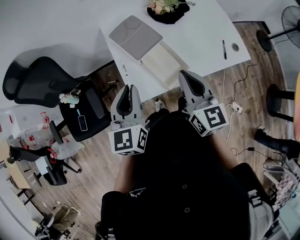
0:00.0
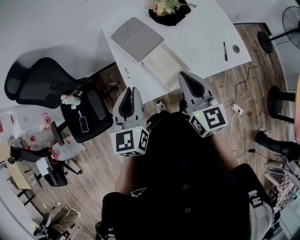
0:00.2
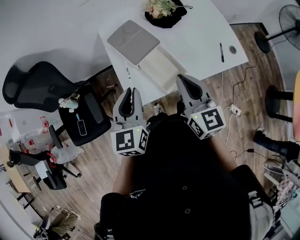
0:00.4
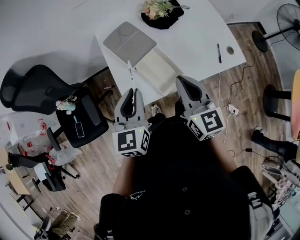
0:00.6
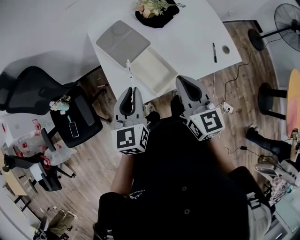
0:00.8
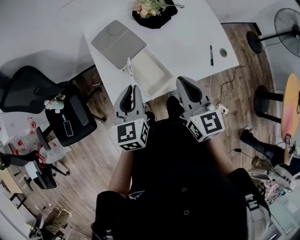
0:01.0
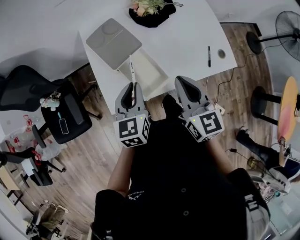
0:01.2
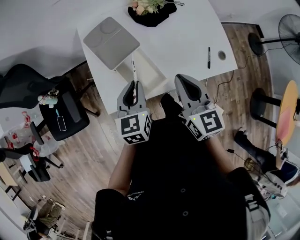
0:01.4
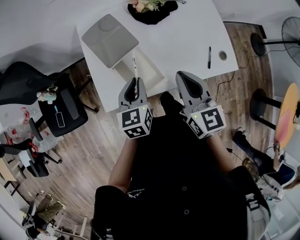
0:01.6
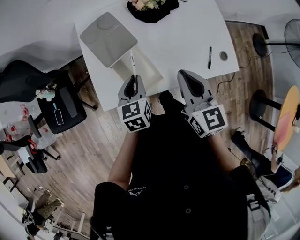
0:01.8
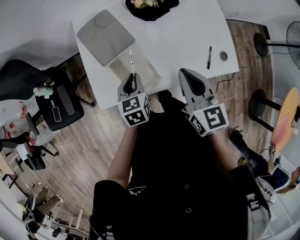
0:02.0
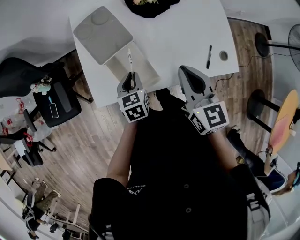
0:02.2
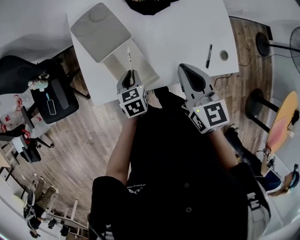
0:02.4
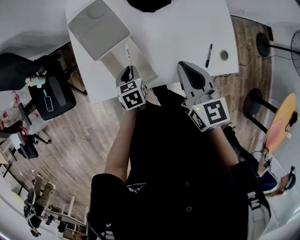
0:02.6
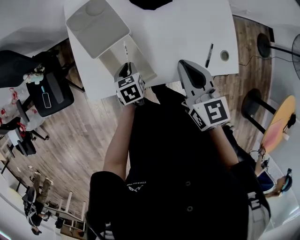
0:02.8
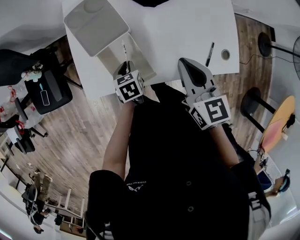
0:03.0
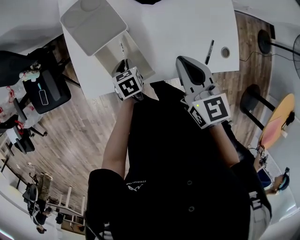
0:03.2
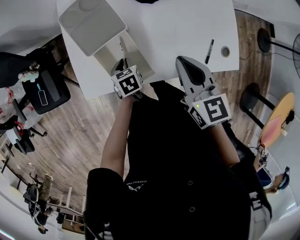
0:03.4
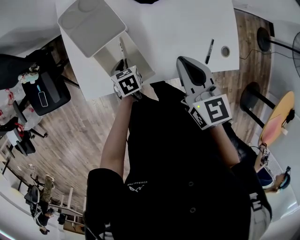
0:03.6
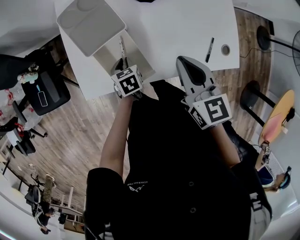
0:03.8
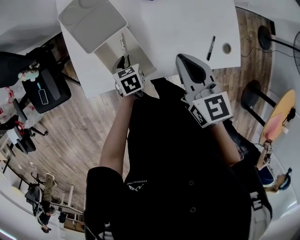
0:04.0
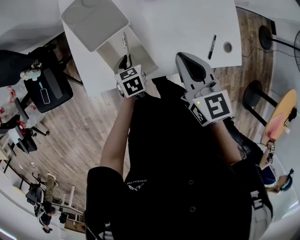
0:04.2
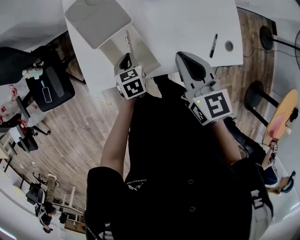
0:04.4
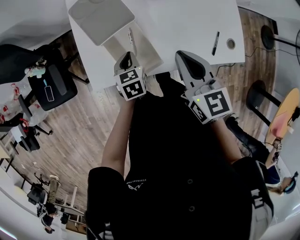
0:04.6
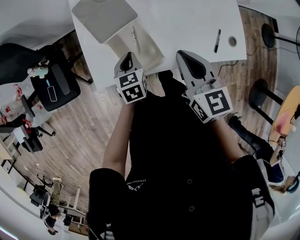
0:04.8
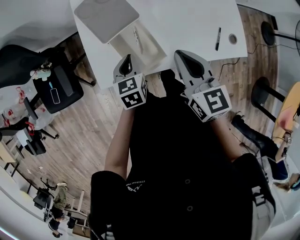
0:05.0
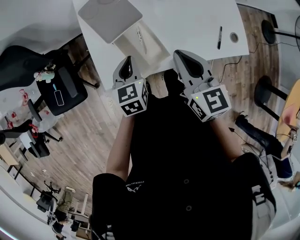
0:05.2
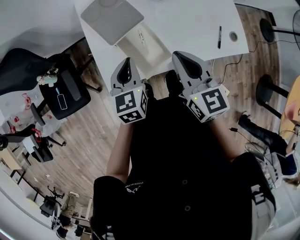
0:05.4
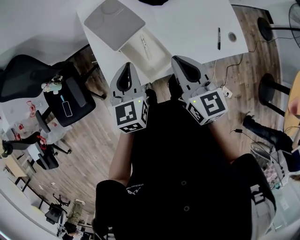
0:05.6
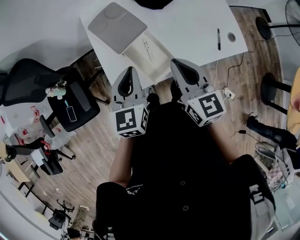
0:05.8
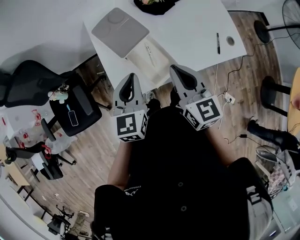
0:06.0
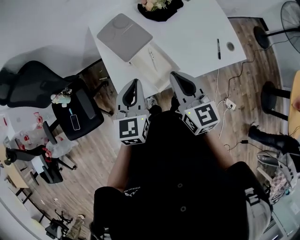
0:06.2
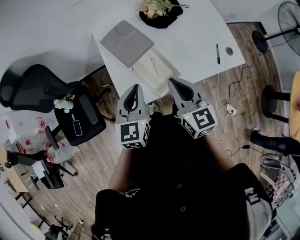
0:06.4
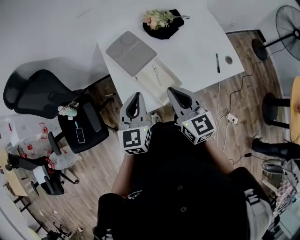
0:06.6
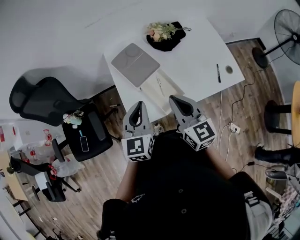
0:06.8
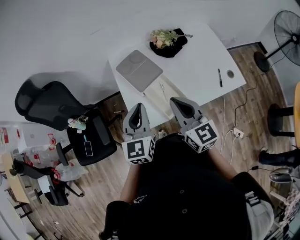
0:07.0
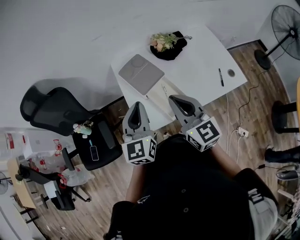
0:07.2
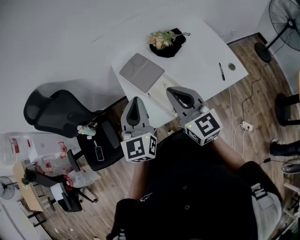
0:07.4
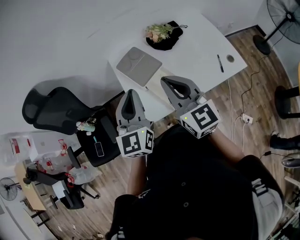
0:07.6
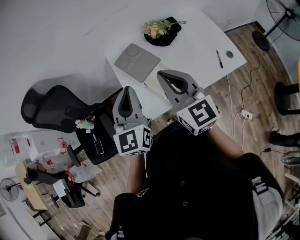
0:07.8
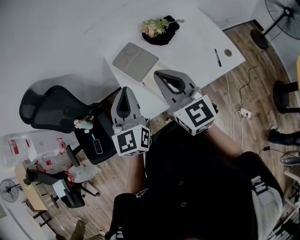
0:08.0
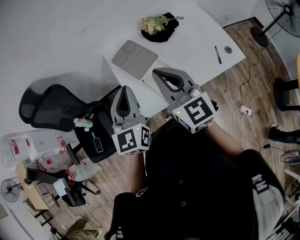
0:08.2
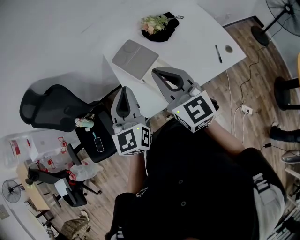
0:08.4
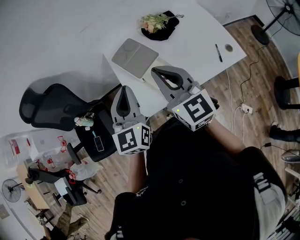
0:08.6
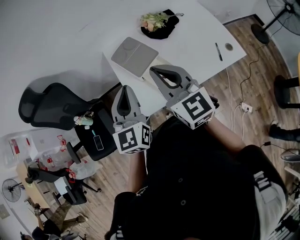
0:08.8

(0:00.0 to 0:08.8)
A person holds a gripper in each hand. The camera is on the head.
0:00.0 - 0:01.4: The left gripper travels to the right, downward and forward by some 20 cm. Meanwhile the right gripper travels to the right and forward by about 15 cm.
0:01.4 - 0:03.0: The right gripper shifts approximately 15 cm to the right, forward and downward. Meanwhile the left gripper travels downward by approximately 20 cm, and tips its fingers downward by roughly 30 degrees.
0:03.0 - 0:04.4: The grippers stay close to where they were, moving slightly.
0:04.4 - 0:05.8: The left gripper travels upward by about 25 cm, and tilts its fingers some 30 degrees upward. Meanwhile the right gripper travels to the left, backward and upward by some 15 cm.
0:05.8 - 0:07.4: Both grippers travel together upward and to the left, about 15 cm. The left gripper turns by about 20 degrees.
0:07.4 - 0:08.8: The grippers move only a little.

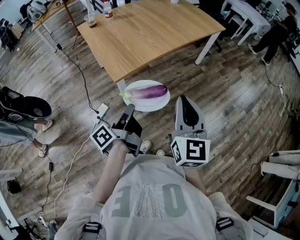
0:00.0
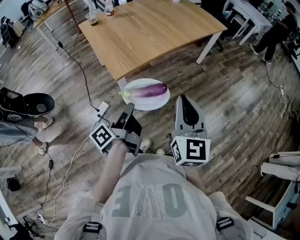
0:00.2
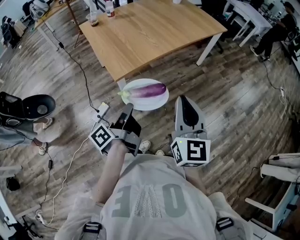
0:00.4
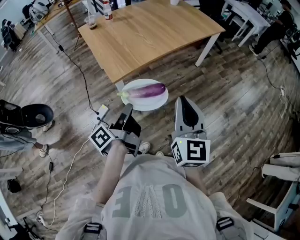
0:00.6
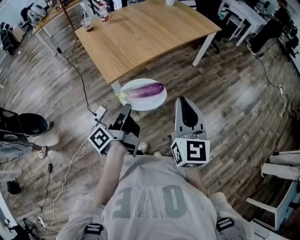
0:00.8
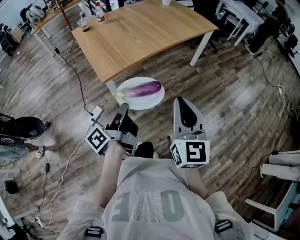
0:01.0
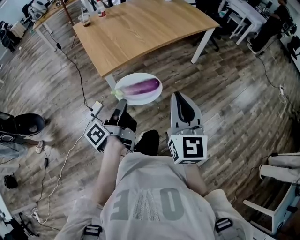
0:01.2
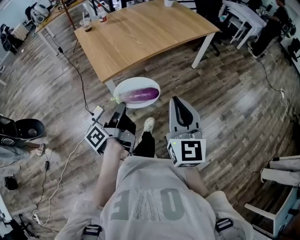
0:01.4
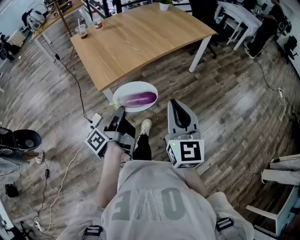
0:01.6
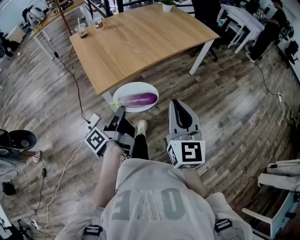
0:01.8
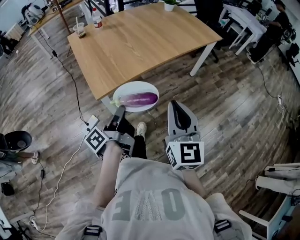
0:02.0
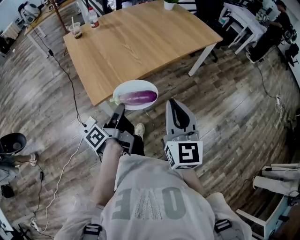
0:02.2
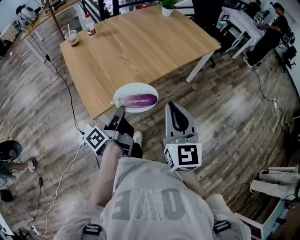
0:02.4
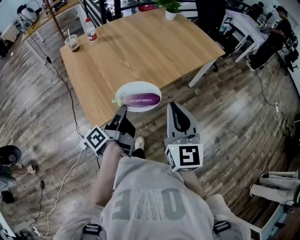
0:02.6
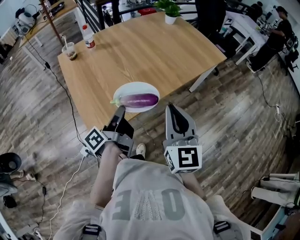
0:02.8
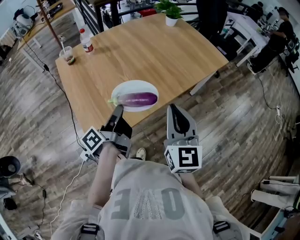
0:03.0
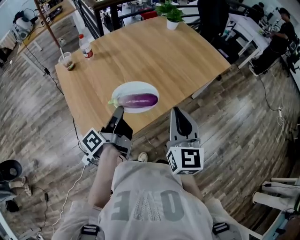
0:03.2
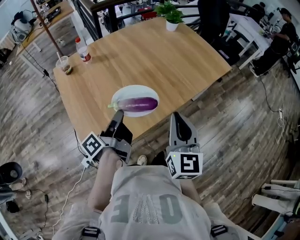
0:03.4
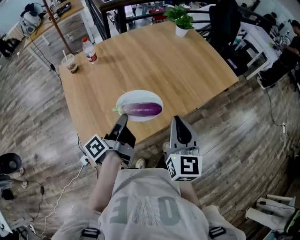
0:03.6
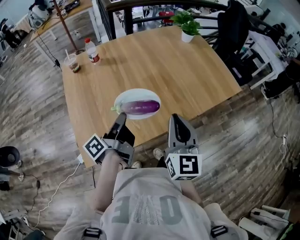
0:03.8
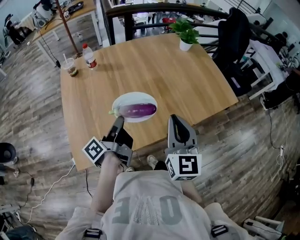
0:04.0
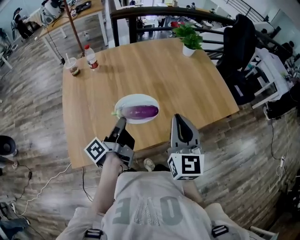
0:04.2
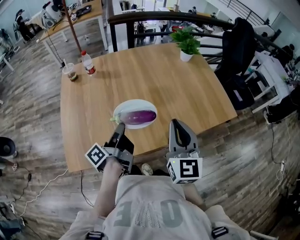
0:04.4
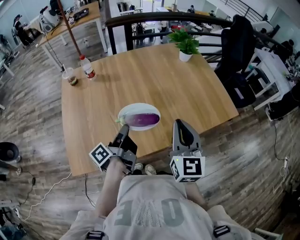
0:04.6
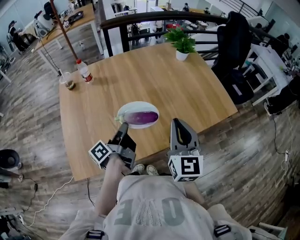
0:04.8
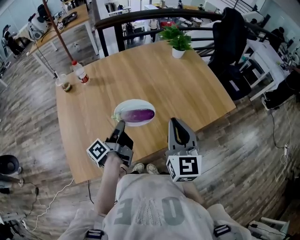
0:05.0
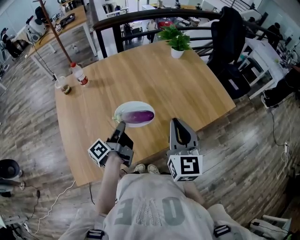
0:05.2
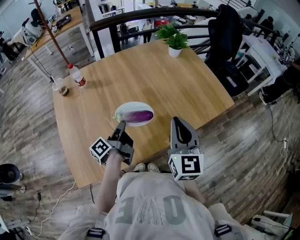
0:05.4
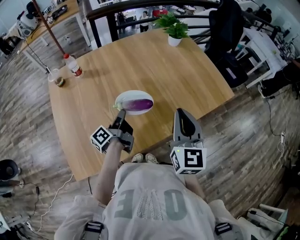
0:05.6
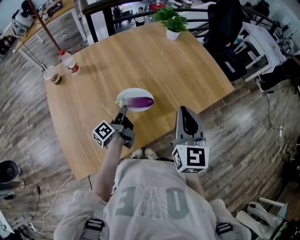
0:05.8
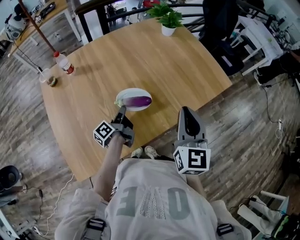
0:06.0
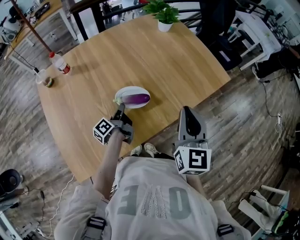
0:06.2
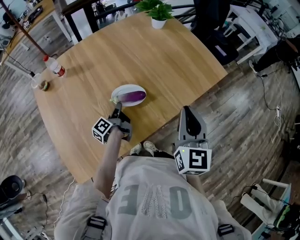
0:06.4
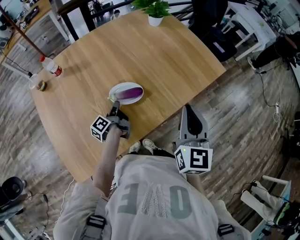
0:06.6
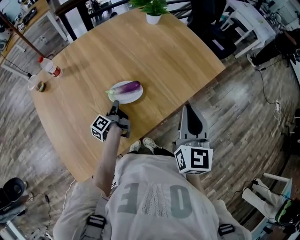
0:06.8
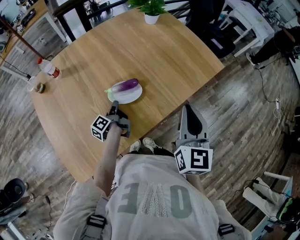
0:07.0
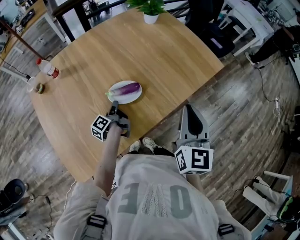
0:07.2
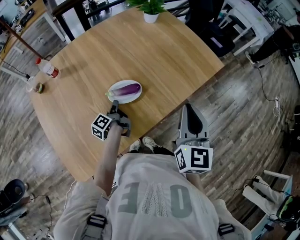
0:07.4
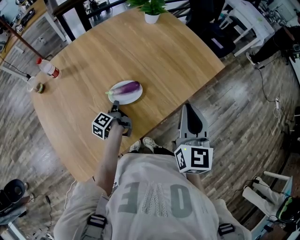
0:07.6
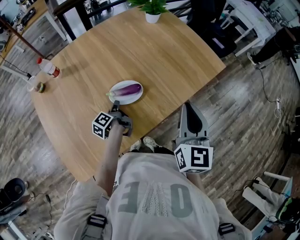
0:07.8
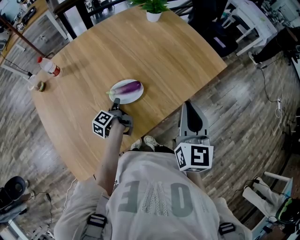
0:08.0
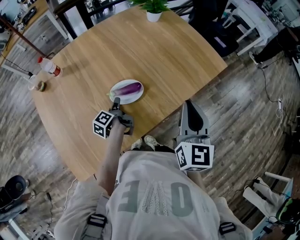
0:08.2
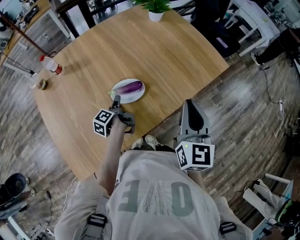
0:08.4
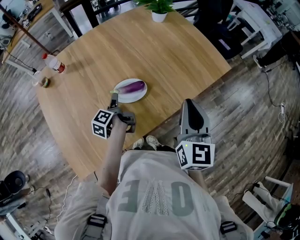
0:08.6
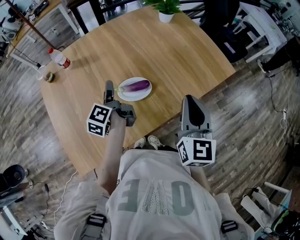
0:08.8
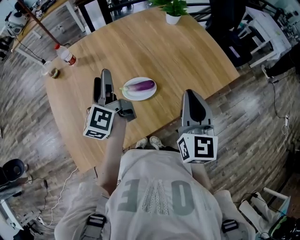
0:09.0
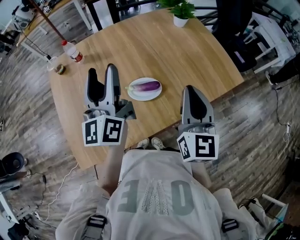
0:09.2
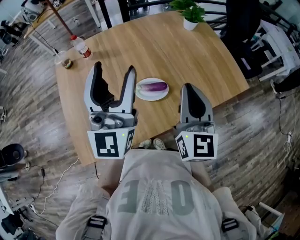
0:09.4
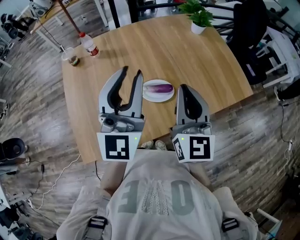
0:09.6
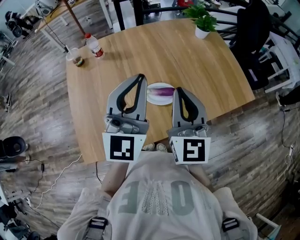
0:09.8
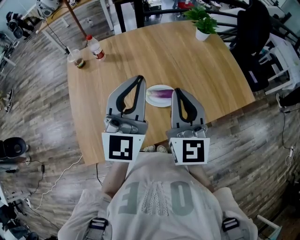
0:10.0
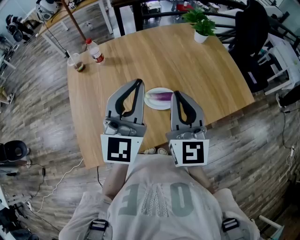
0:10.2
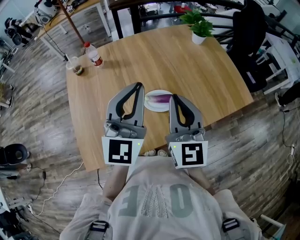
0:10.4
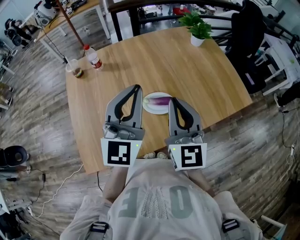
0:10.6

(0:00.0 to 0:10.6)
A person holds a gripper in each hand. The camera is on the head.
0:00.0 - 0:01.6: The right gripper changes place by about 5 cm.
0:01.6 - 0:03.0: The right gripper moves approximately 35 cm.
0:03.0 - 0:04.6: The right gripper changes place by some 25 cm.
0:07.6 - 0:09.0: The right gripper moves roughly 5 cm.
0:09.0 - 0:10.6: The right gripper ends up roughly 15 cm from where it was.

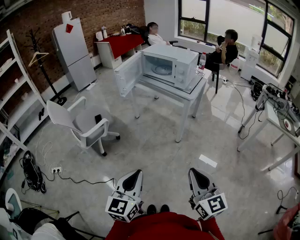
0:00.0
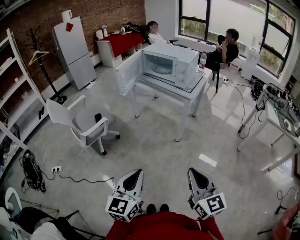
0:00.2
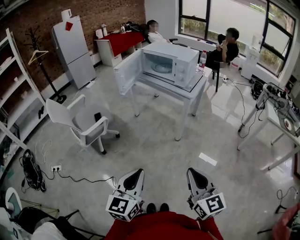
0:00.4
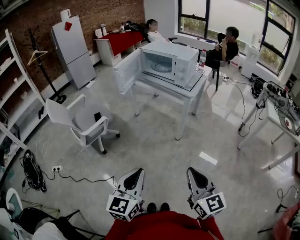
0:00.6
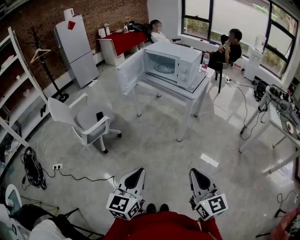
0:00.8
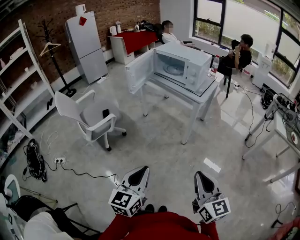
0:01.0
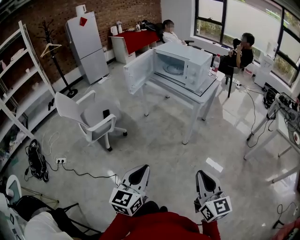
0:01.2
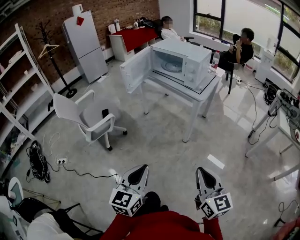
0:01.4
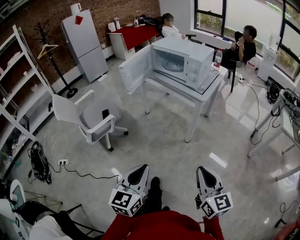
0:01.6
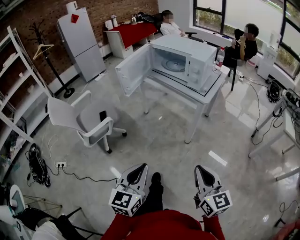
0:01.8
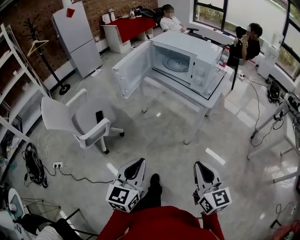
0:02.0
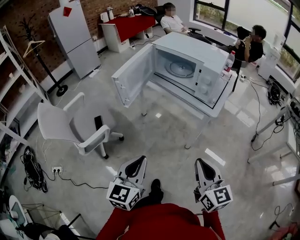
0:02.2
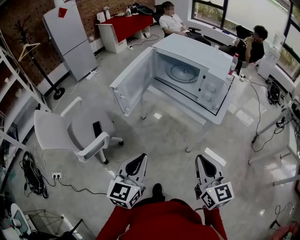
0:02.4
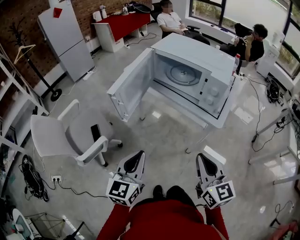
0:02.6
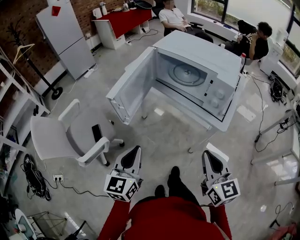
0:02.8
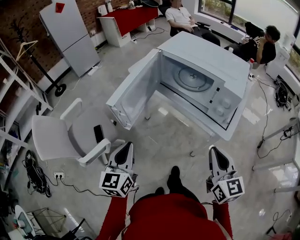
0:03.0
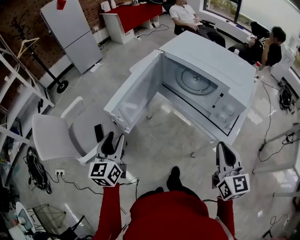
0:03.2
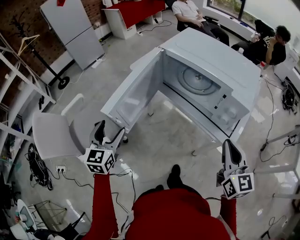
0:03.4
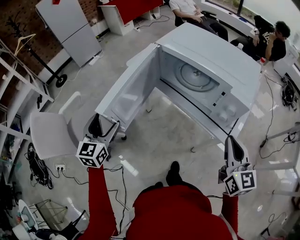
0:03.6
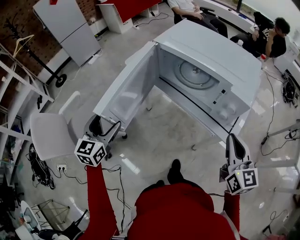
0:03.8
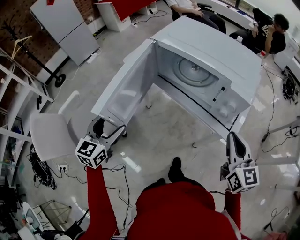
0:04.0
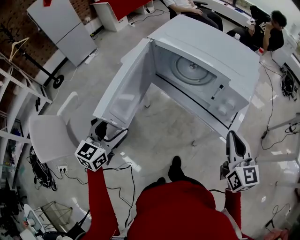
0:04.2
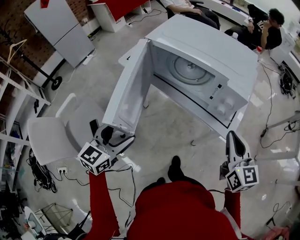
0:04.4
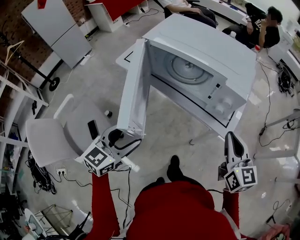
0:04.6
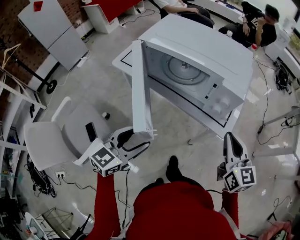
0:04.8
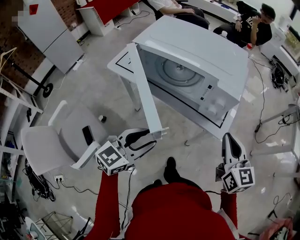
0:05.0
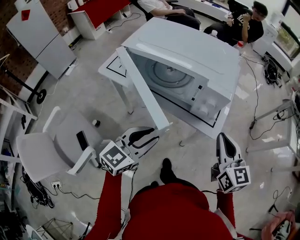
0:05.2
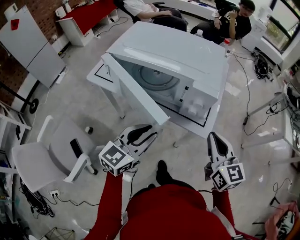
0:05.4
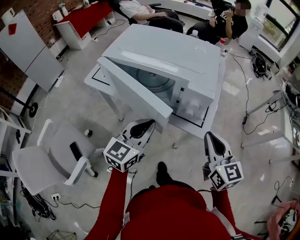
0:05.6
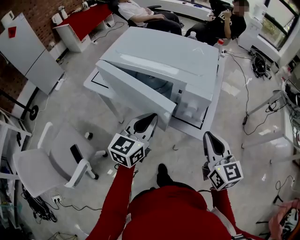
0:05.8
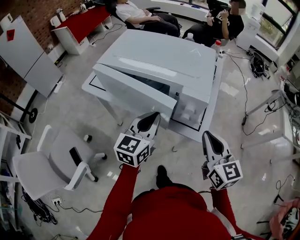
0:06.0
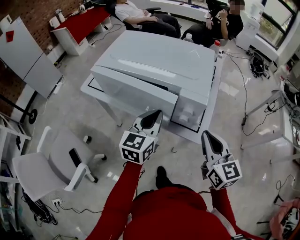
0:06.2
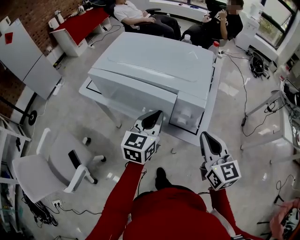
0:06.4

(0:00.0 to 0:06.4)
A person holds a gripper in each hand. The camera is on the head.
0:00.0 - 0:01.6: The two grippers go some 10 cm forward.
0:01.6 - 0:03.2: Both grippers are carried forward, approximately 40 cm. The left gripper opens up.
0:03.2 - 0:04.8: The left gripper moves approximately 15 cm, and rotates about 50 degrees. Meanwhile the right gripper shifts by some 5 cm.
0:04.8 - 0:06.4: The left gripper is displaced forward and to the right by about 25 cm, and closes.
